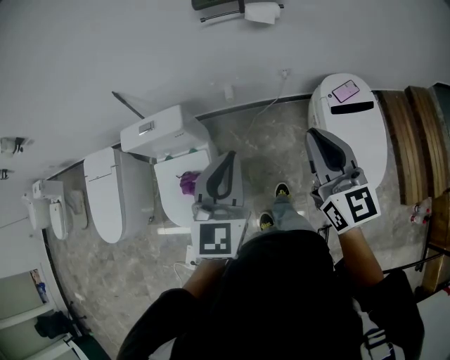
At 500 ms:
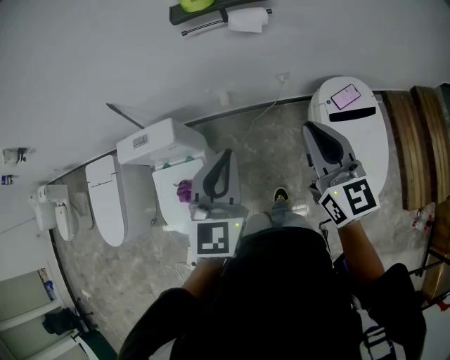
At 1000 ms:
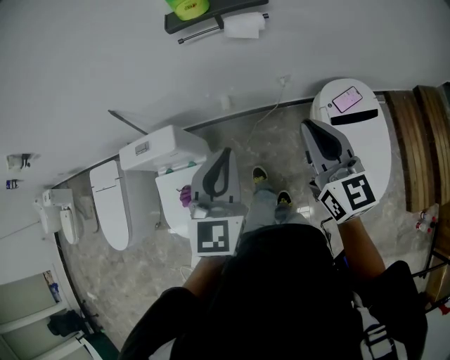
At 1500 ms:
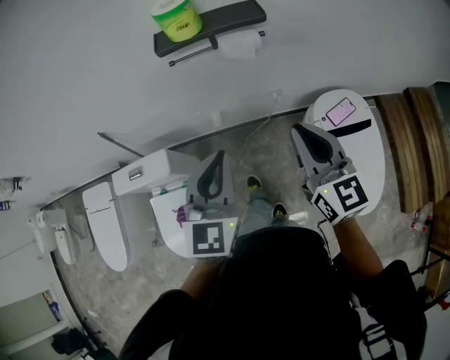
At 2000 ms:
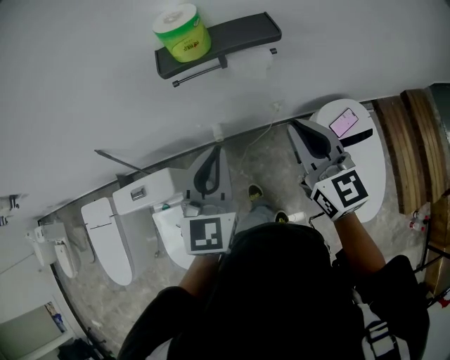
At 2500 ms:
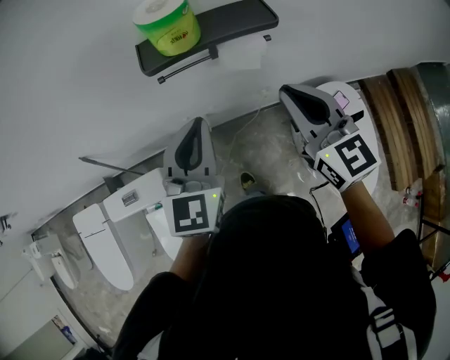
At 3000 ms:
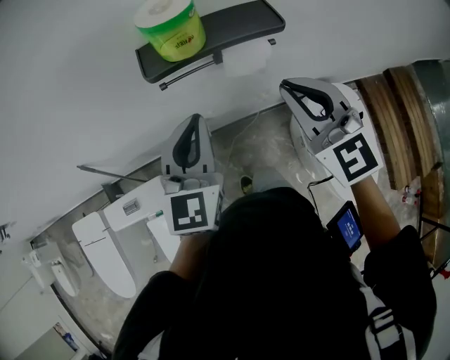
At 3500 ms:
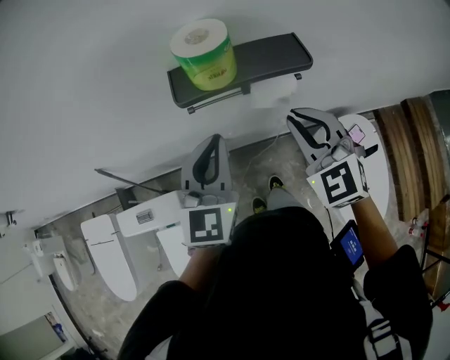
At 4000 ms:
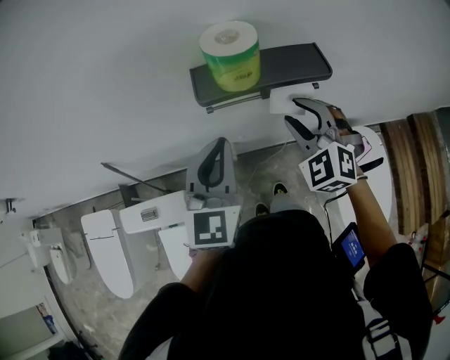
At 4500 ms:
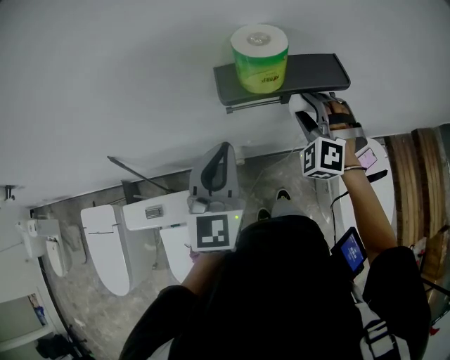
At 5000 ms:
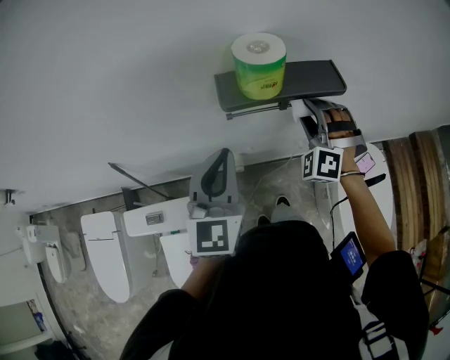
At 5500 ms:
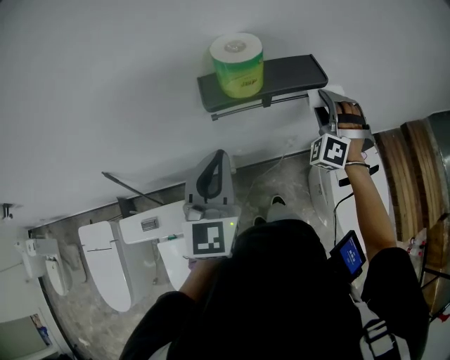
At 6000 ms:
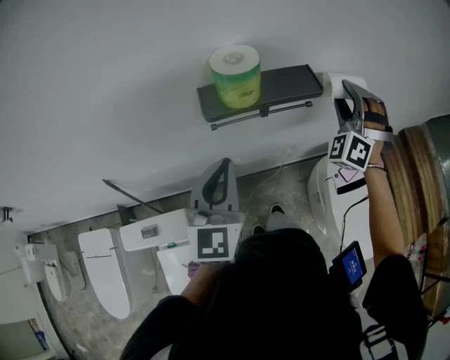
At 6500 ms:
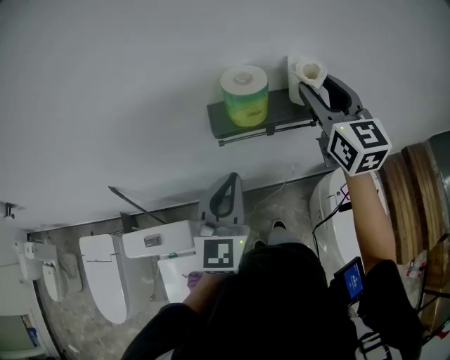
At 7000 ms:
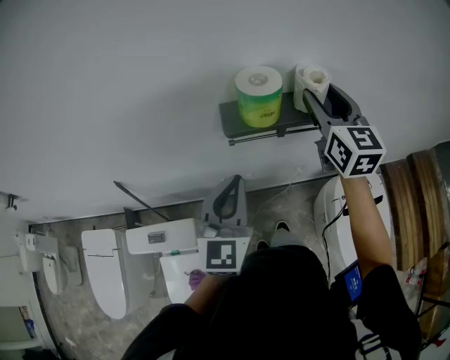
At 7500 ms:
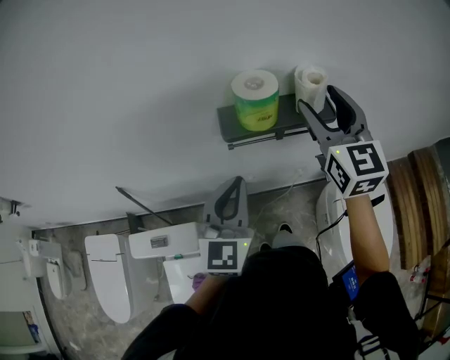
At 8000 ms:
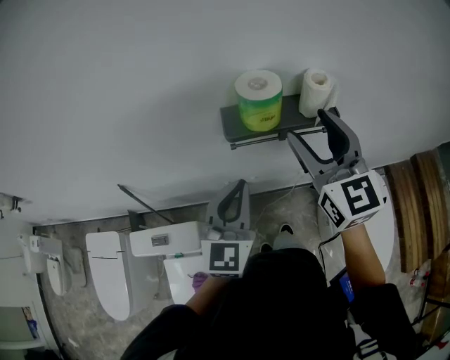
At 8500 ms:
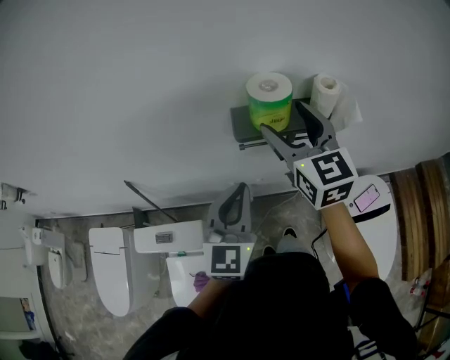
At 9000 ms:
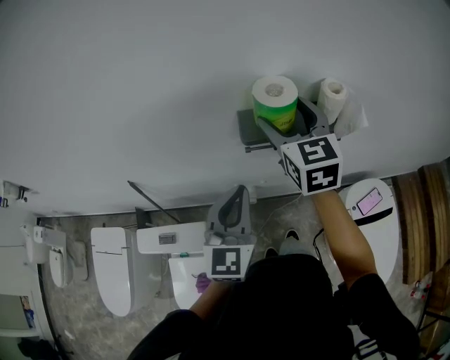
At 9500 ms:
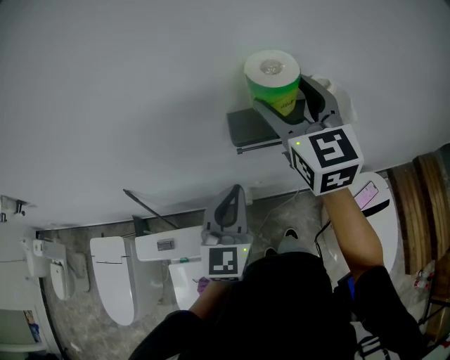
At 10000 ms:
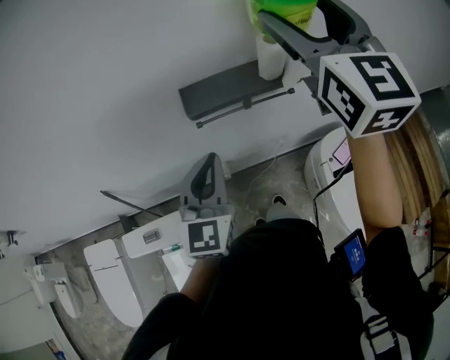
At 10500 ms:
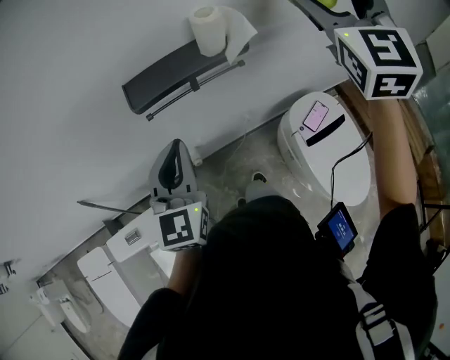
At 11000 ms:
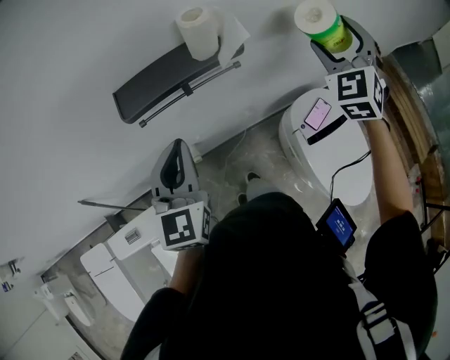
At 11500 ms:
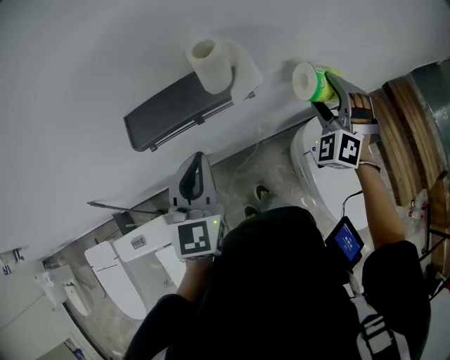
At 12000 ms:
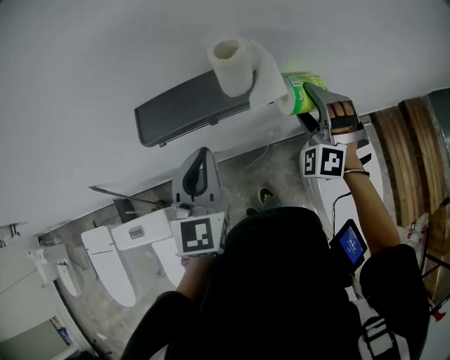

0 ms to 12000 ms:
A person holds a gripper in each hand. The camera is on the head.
0 ms to 2000 ms: Both grippers travel together forward, about 25 cm.
2000 ms to 4000 ms: The right gripper shifts some 15 cm forward, twists some 50 degrees counterclockwise, seen from behind, and opens up, while the left gripper travels forward and to the left by roughly 15 cm.
4000 ms to 6000 ms: The right gripper shifts about 15 cm to the right, forward and upward, and changes its angle by some 40 degrees.
6000 ms to 8000 ms: The right gripper is displaced to the left, upward and backward by approximately 20 cm, and rotates around the line of its fingers by some 70 degrees, clockwise from behind.
8000 ms to 10000 ms: The right gripper goes approximately 15 cm upward and to the right.
10000 ms to 12000 ms: The right gripper moves downward, about 35 cm, and twists some 60 degrees counterclockwise, seen from behind, while the left gripper heads forward and to the right, covering about 10 cm.

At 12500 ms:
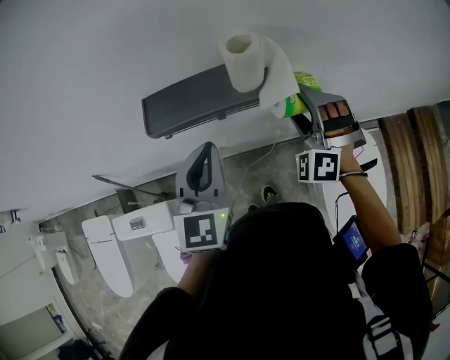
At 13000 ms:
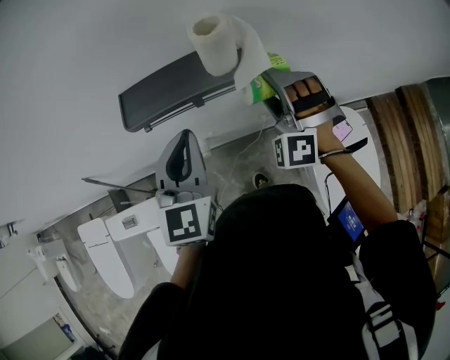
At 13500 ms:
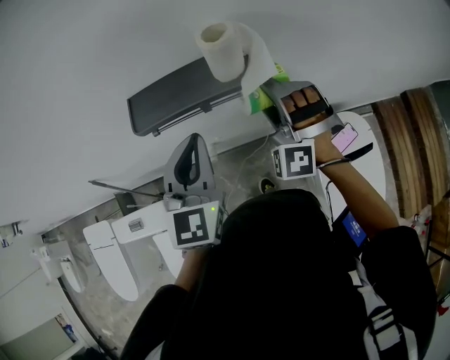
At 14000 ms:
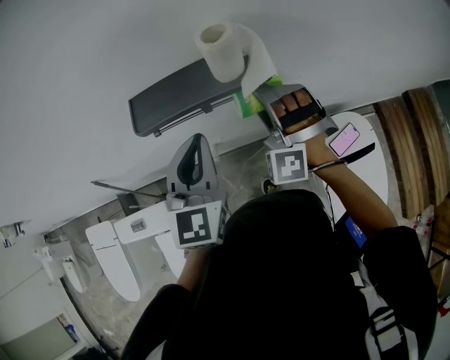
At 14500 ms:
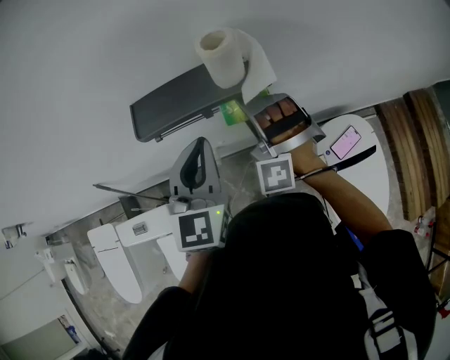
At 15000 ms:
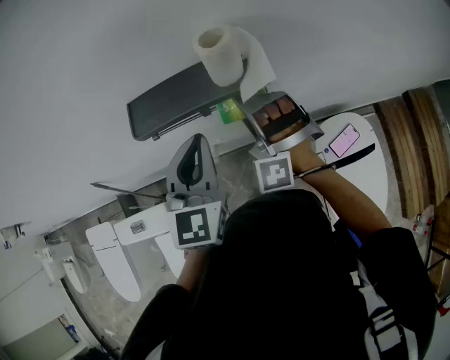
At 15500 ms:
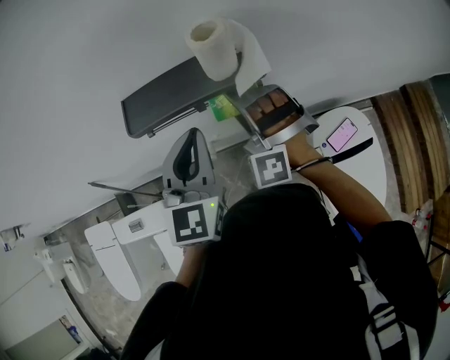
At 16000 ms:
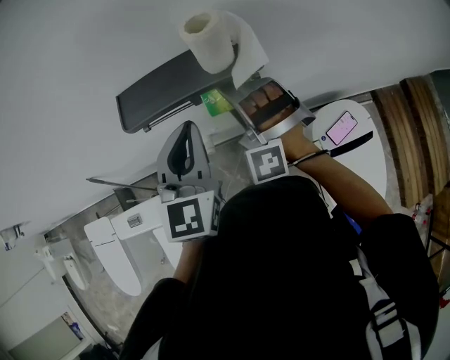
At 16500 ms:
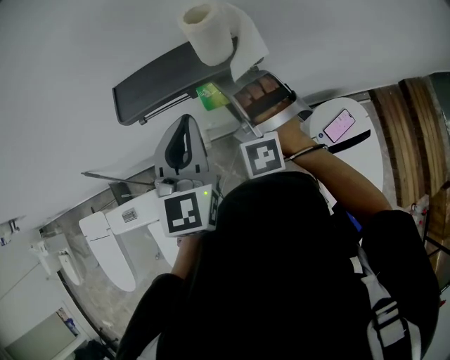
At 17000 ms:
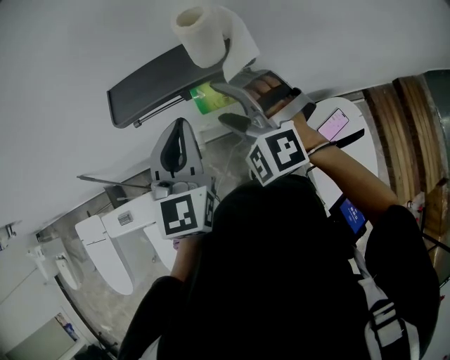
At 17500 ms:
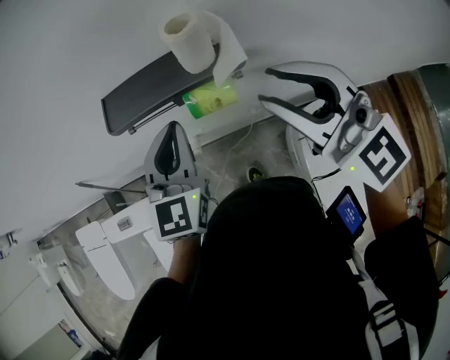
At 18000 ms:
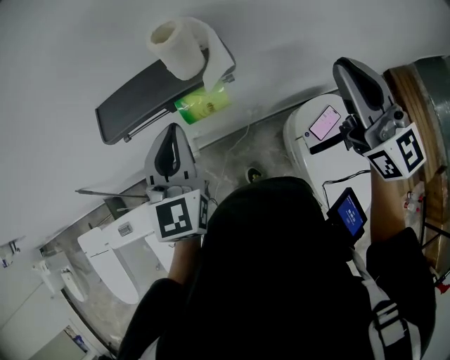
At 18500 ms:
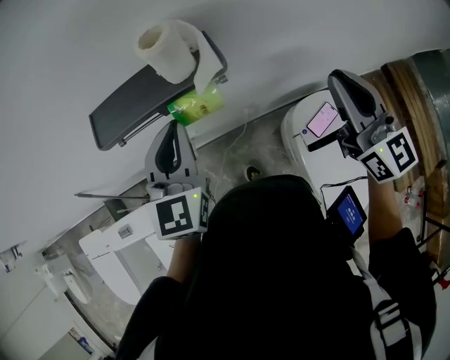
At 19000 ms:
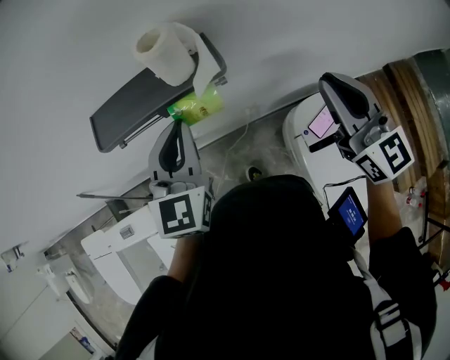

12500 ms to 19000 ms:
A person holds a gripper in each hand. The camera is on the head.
12500 ms to 14500 ms: The right gripper goes some 10 cm to the left.
14500 ms to 17000 ms: The right gripper changes its angle by roughly 30 degrees.
17000 ms to 19000 ms: The left gripper moves roughly 5 cm. The right gripper travels to the right by approximately 25 cm, rolls clockwise, seen from behind, by some 60 degrees, and closes.

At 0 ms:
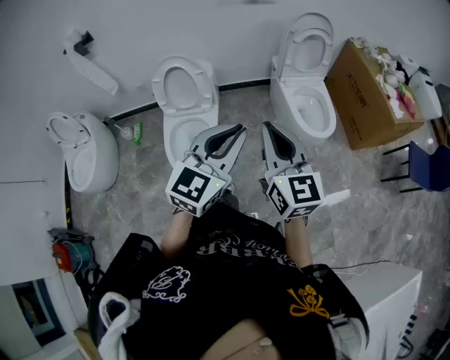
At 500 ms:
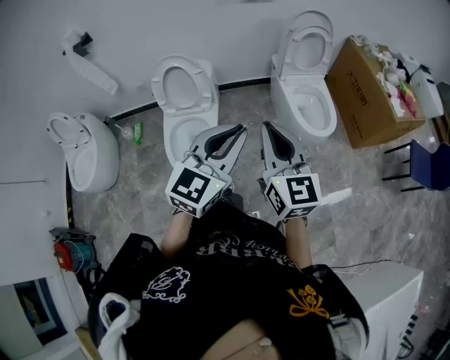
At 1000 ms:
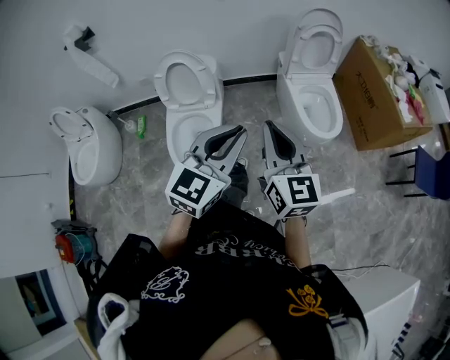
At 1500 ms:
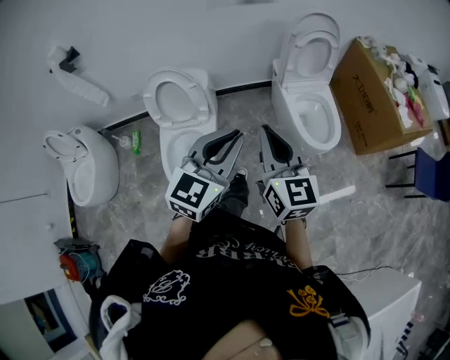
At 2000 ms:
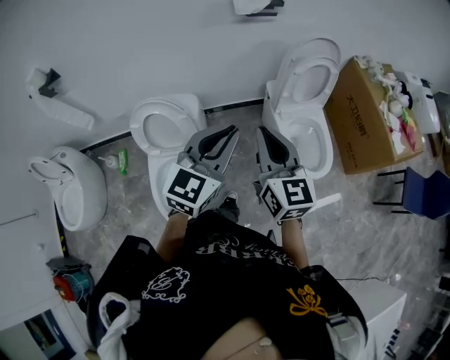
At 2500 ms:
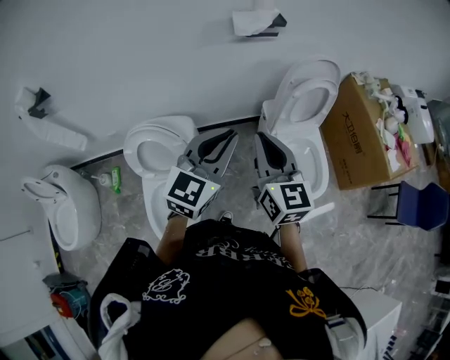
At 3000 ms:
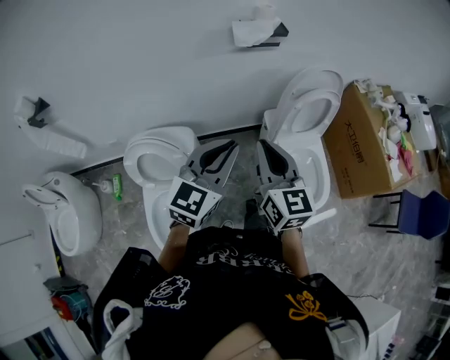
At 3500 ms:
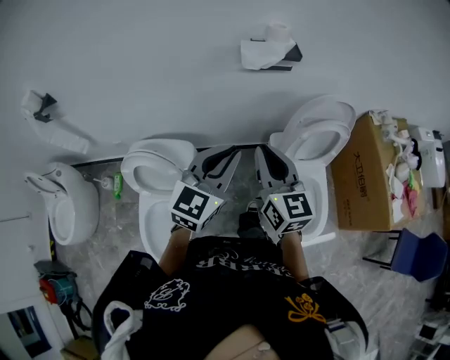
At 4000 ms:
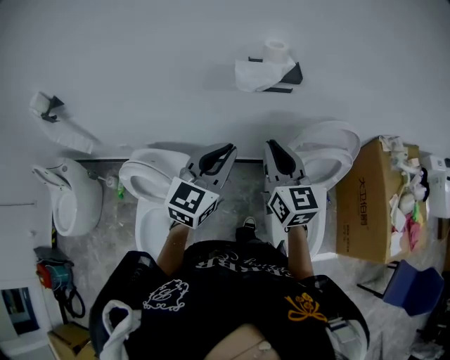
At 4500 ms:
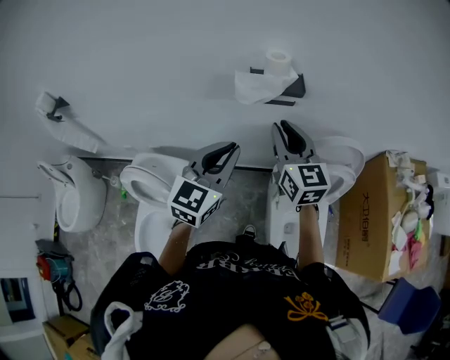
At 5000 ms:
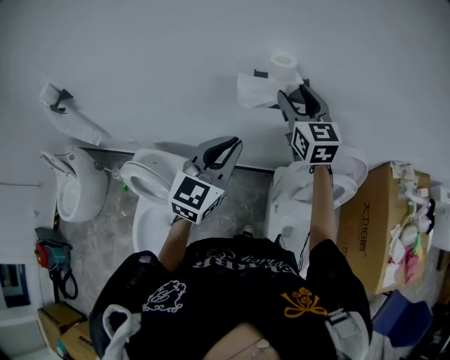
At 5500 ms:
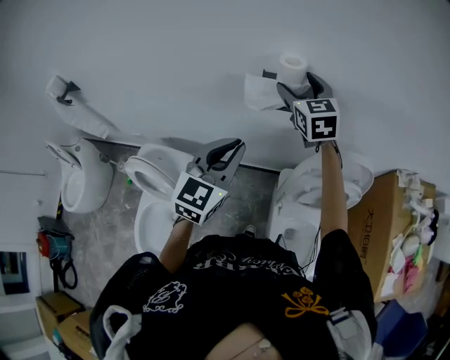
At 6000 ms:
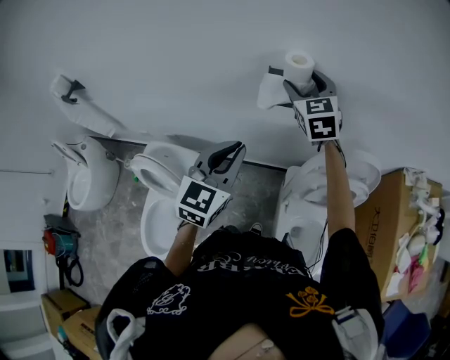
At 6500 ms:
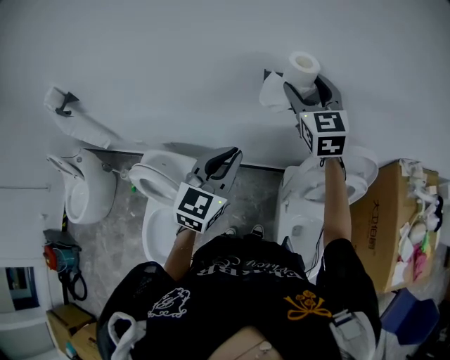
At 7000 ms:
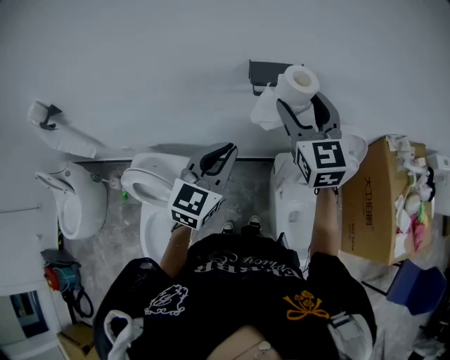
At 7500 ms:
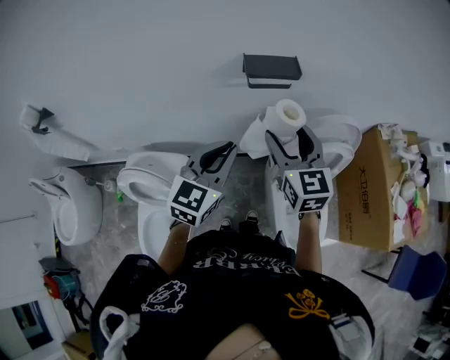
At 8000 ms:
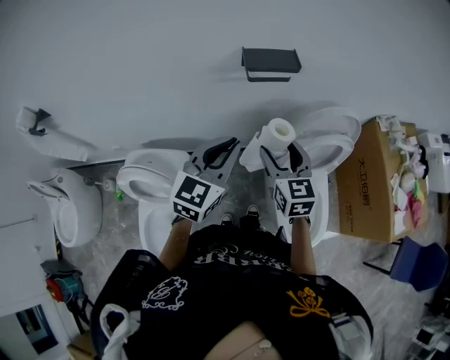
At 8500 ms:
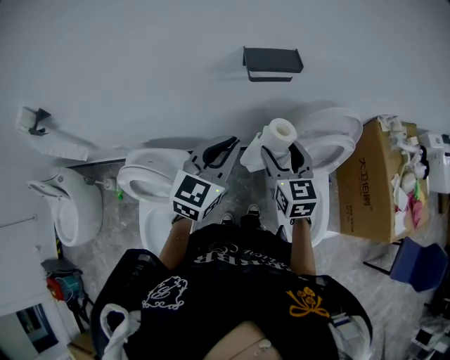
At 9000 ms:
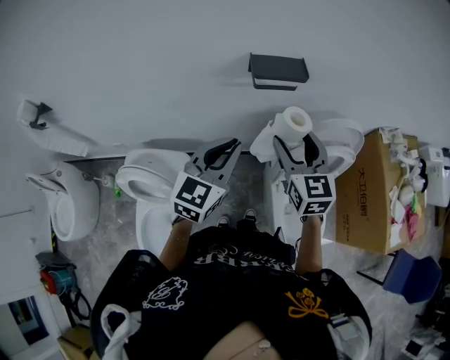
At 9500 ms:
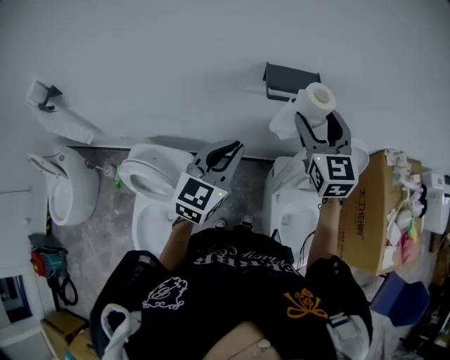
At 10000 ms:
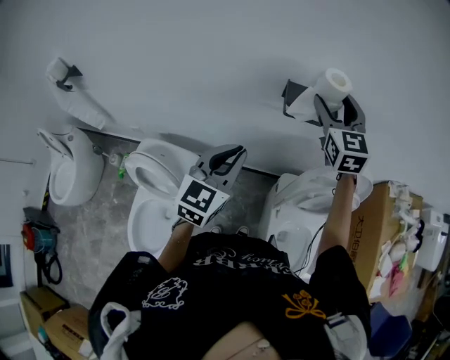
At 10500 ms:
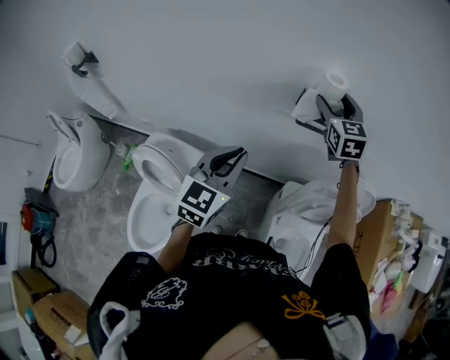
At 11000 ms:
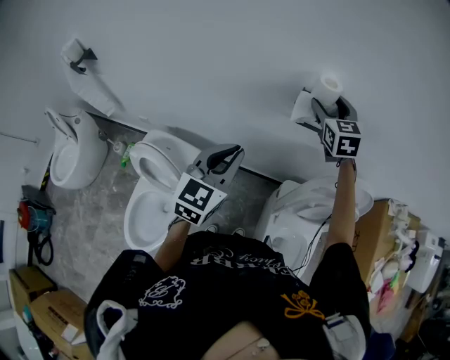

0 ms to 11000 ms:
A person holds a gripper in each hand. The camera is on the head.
0 ms to 2000 ms: Both grippers travel together forward, approximately 35 cm.
2000 ms to 3500 ms: Both grippers travel together forward, roughly 25 cm.
3500 ms to 5500 ms: The right gripper is displaced forward by about 40 cm, turns by some 30 degrees, and opens up, while the left gripper shifts some 20 cm forward.
5500 ms to 7500 ms: The right gripper goes approximately 20 cm backward. The left gripper heads backward, covering roughly 5 cm.
7500 ms to 9000 ms: The right gripper reaches approximately 10 cm downward, then returns.
9000 ms to 11000 ms: The right gripper travels forward by about 25 cm. The left gripper heads to the left, covering about 5 cm.
